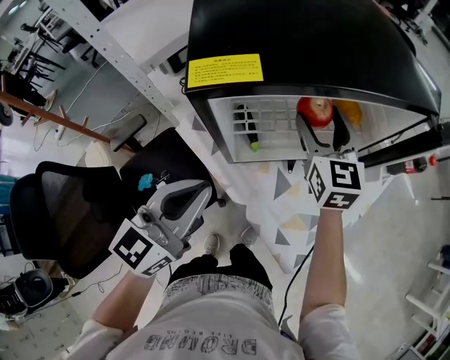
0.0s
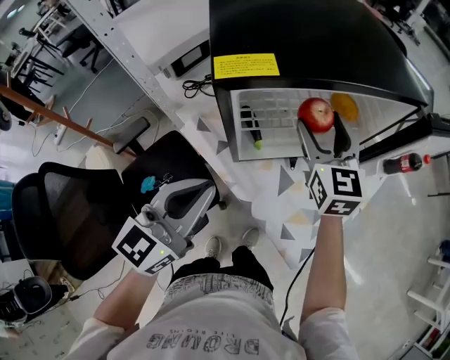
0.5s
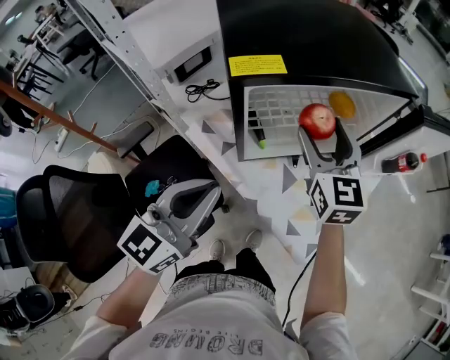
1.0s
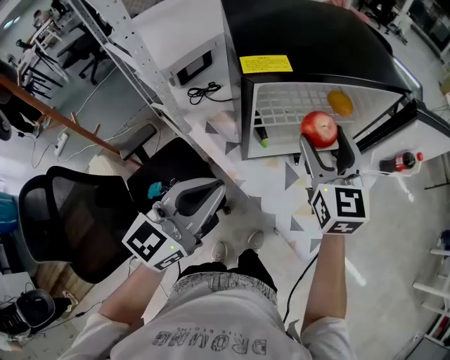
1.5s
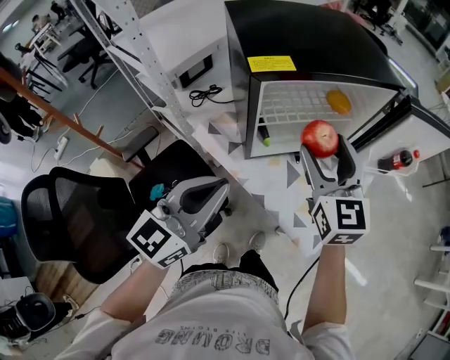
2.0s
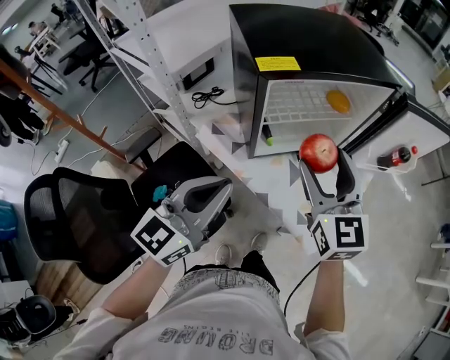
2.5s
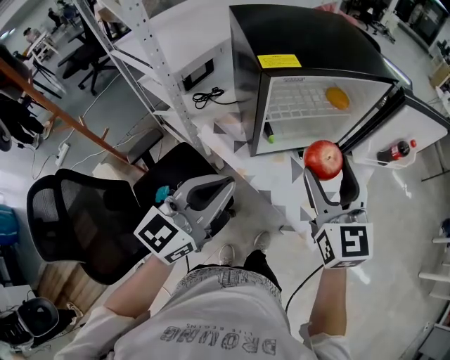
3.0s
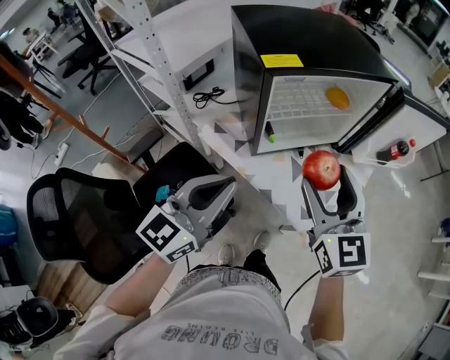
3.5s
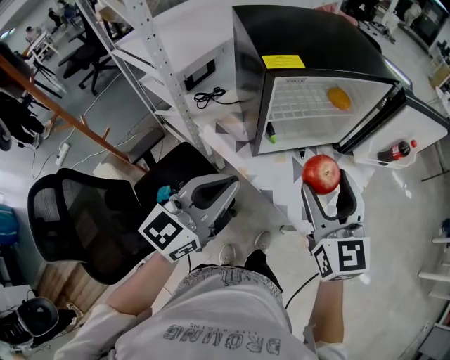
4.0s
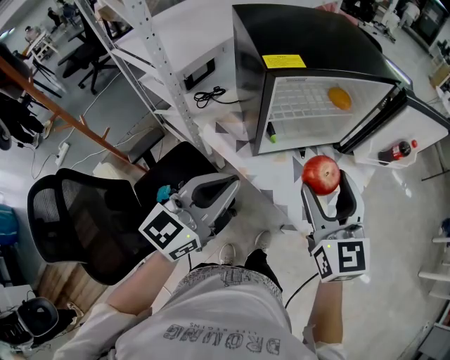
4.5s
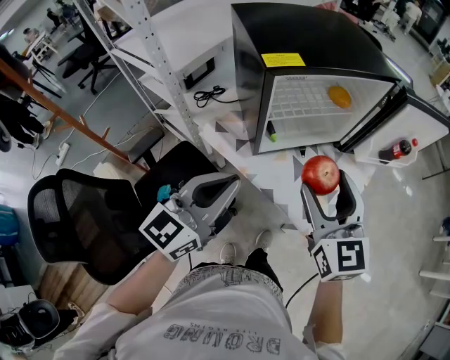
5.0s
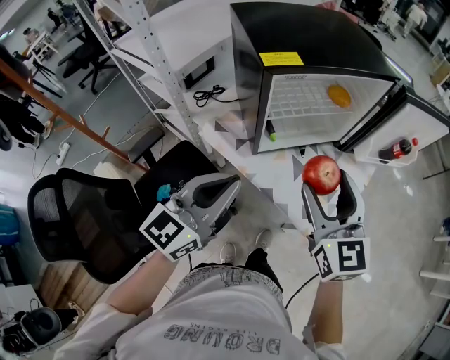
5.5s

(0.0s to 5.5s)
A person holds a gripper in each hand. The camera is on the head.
0.0s - 2.0s: The right gripper goes approximately 20 cm backward and upward; the left gripper moves backward, some 10 cm.
2.0s - 3.5s: The right gripper moves backward, approximately 10 cm.
3.5s - 5.5s: Neither gripper changes place.

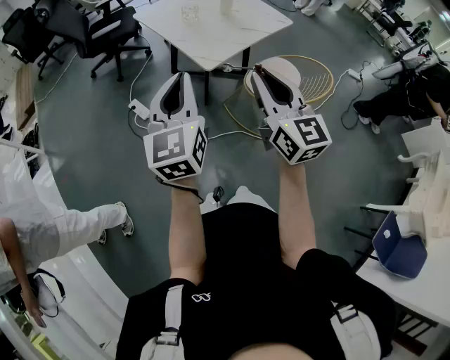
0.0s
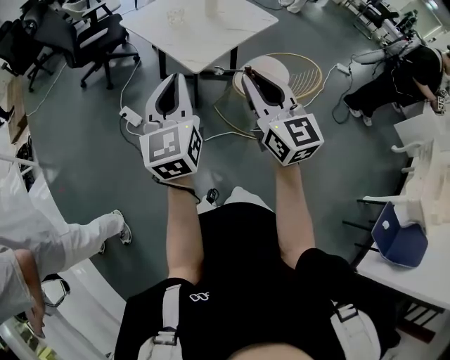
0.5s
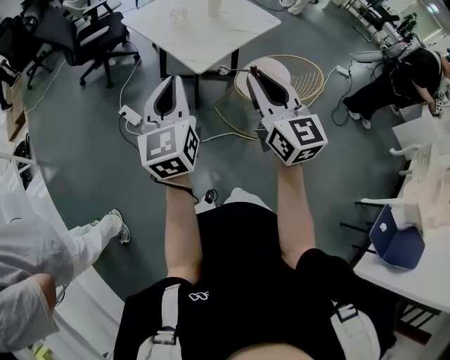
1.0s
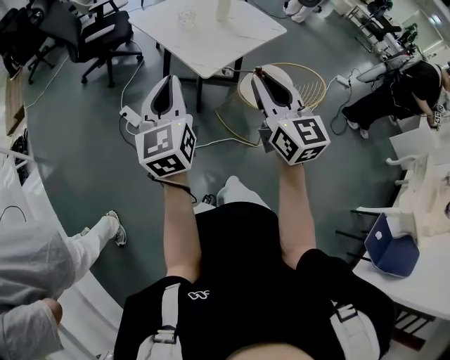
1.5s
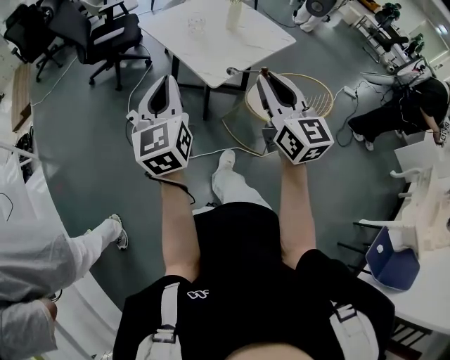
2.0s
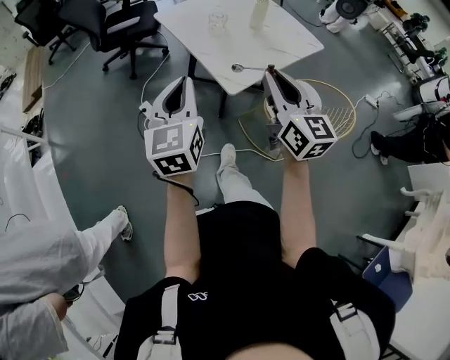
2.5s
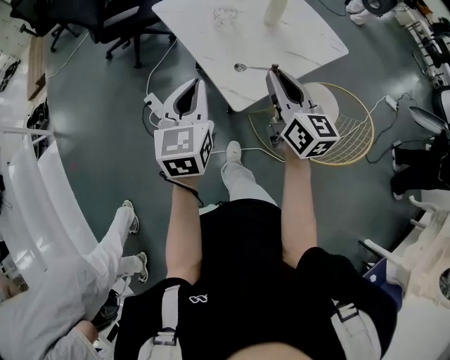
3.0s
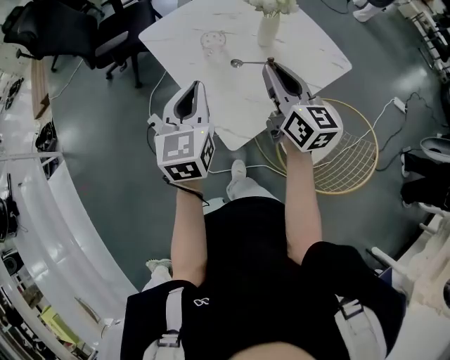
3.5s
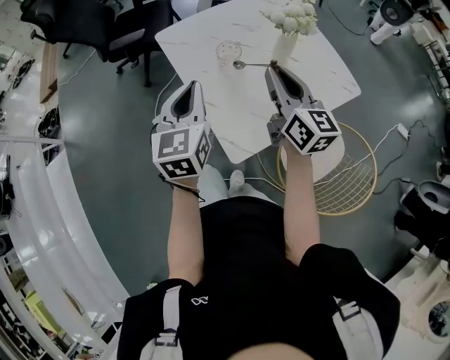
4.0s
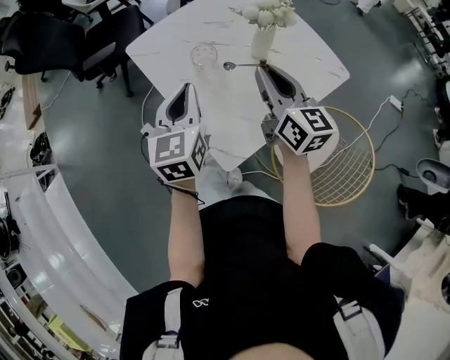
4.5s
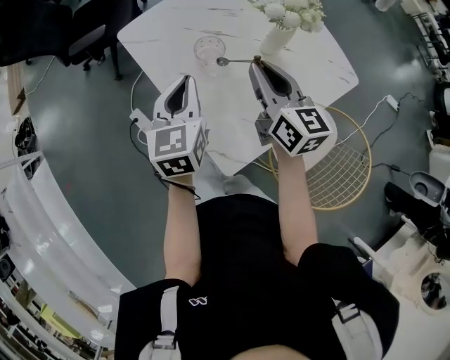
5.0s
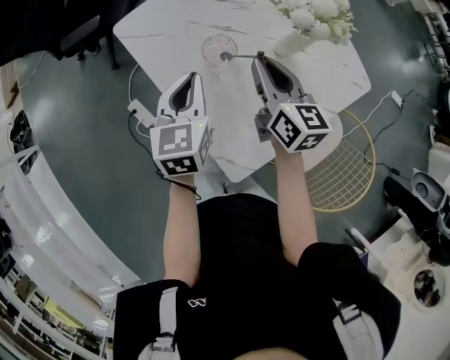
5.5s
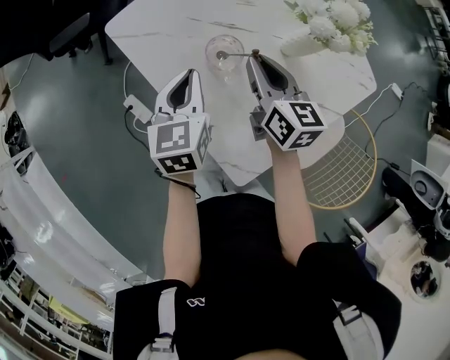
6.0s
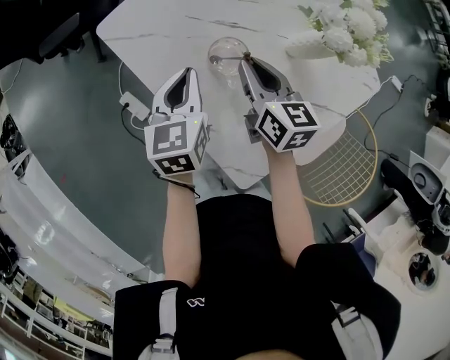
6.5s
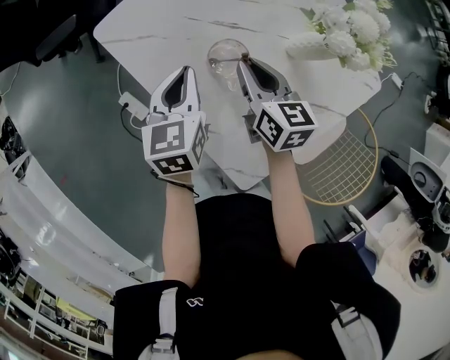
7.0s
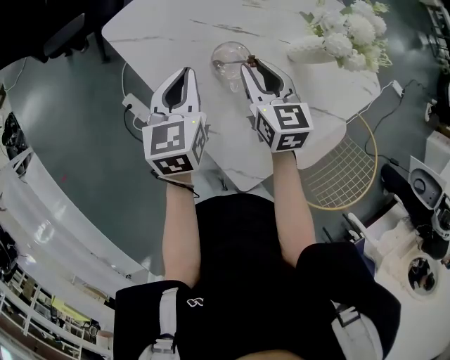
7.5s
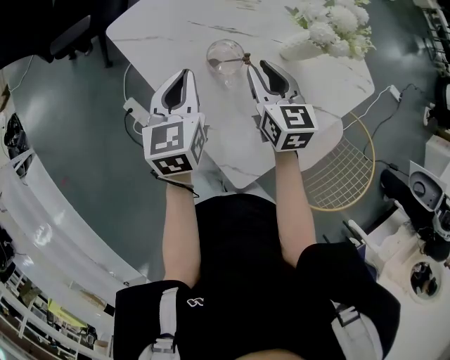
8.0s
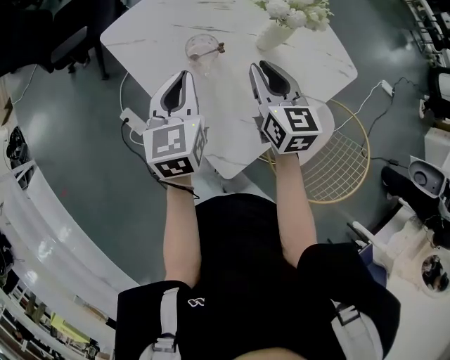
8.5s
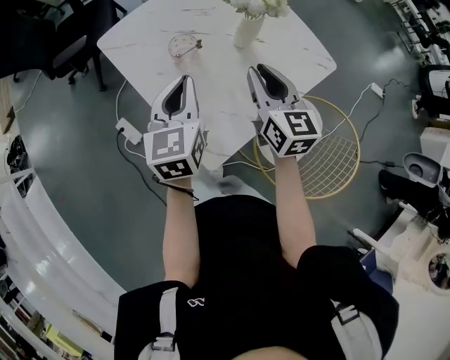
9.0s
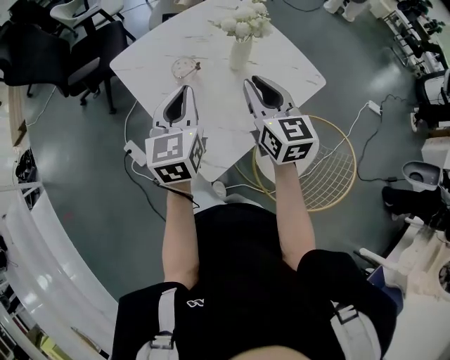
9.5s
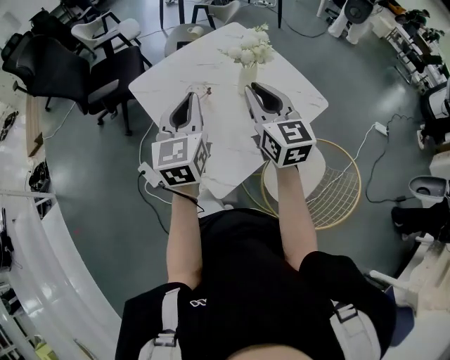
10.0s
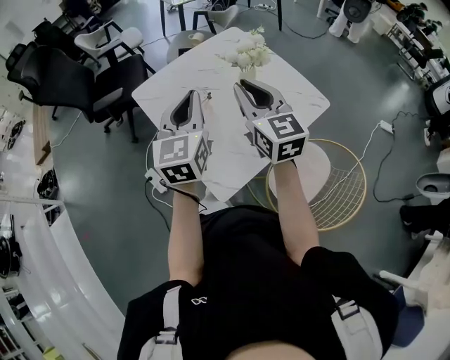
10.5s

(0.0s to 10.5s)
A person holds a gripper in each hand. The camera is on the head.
0.0s - 2.0s: The right gripper heads forward, covering roughly 5 cm. The left gripper travels forward and to the left by some 10 cm.
2.0s - 4.0s: Both grippers travel together forward, approximately 40 cm. The right gripper rotates some 20 degrees.
4.0s - 6.5s: Both grippers move downward and forward, some 25 cm. The left gripper swivels approximately 20 degrees, while the right gripper rotates roughly 30 degrees.
6.5s - 8.5s: The right gripper heads to the right, upward and backward, covering approximately 10 cm; the left gripper moves upward and backward, roughly 10 cm.
8.5s - 10.5s: The grippers both shift upward and backward by about 20 cm. The left gripper rotates approximately 20 degrees; the right gripper turns by about 20 degrees.

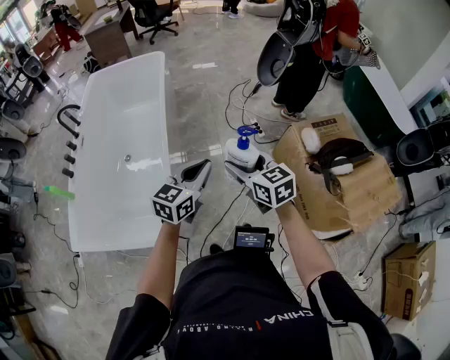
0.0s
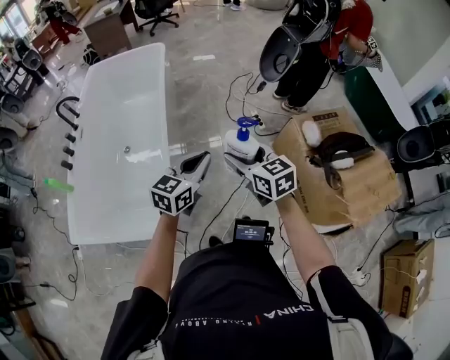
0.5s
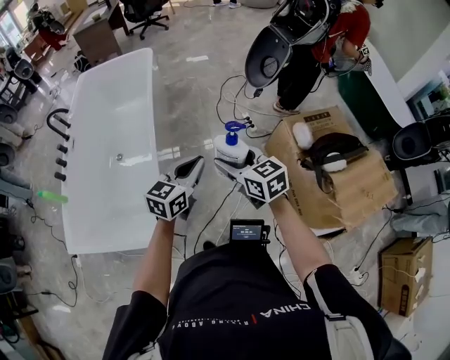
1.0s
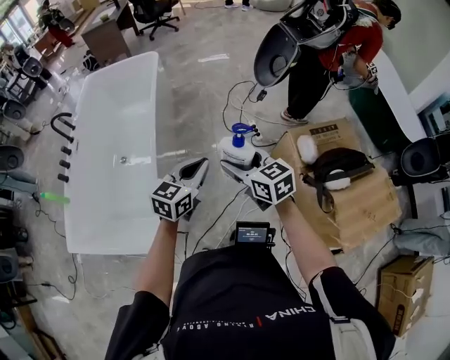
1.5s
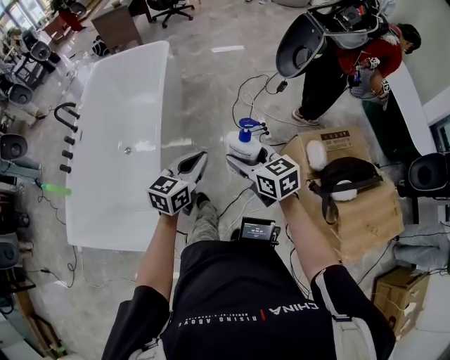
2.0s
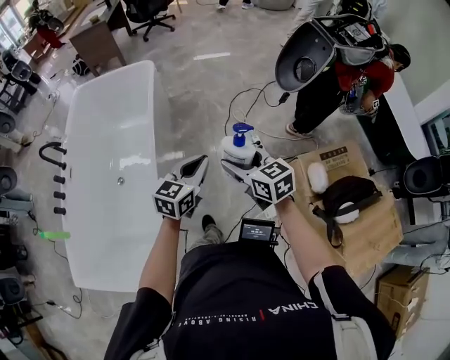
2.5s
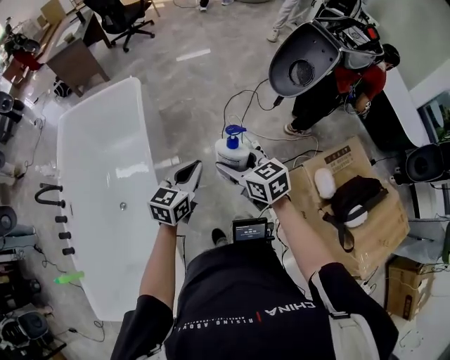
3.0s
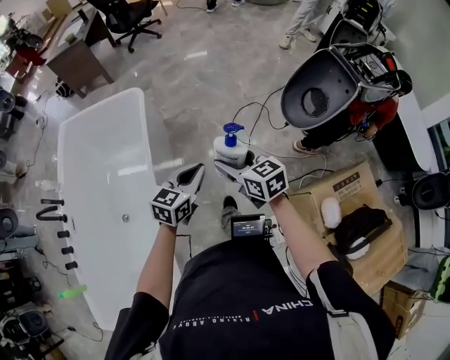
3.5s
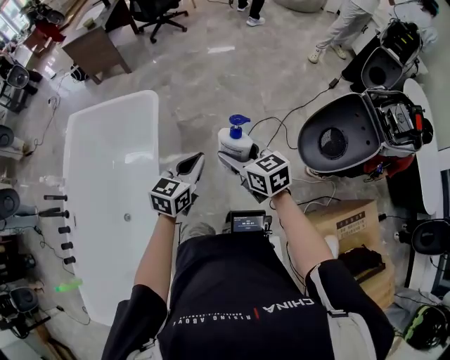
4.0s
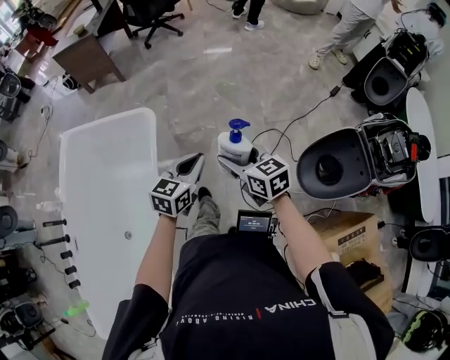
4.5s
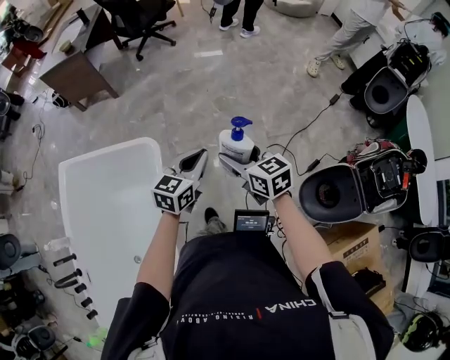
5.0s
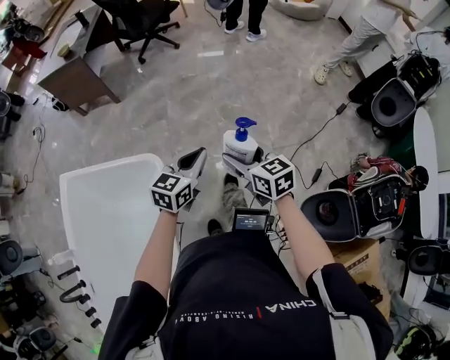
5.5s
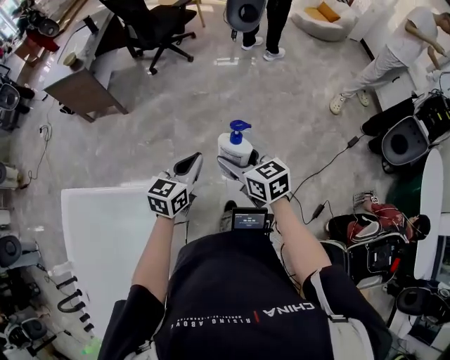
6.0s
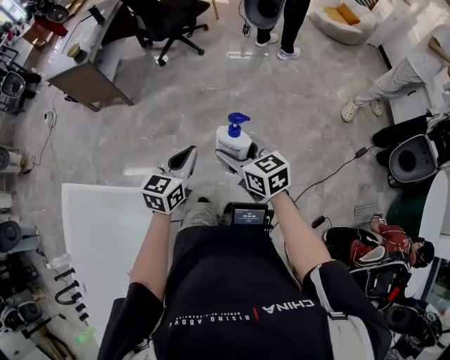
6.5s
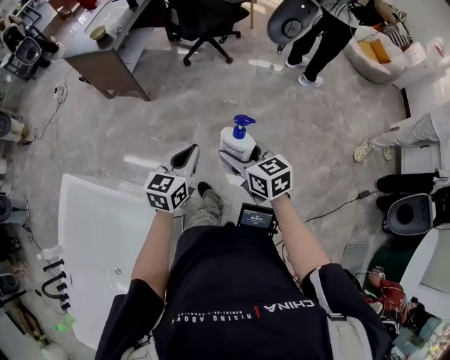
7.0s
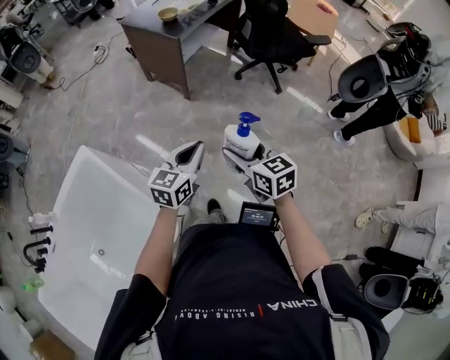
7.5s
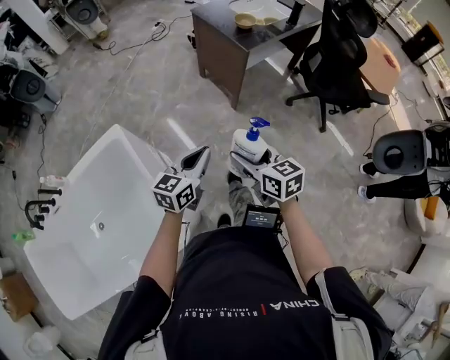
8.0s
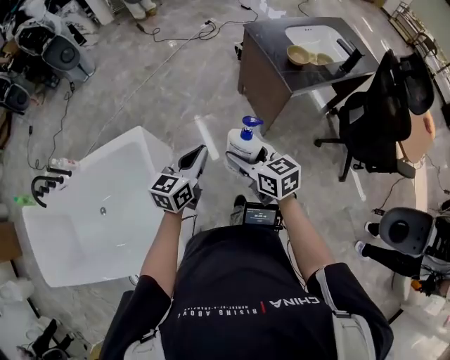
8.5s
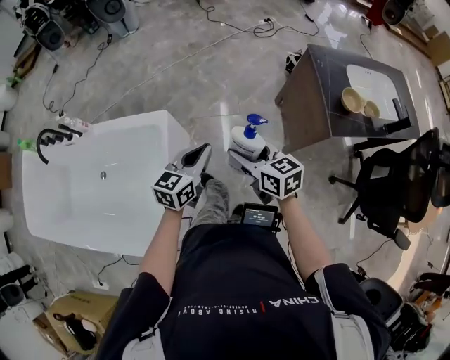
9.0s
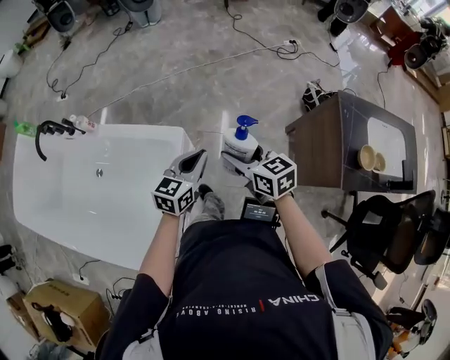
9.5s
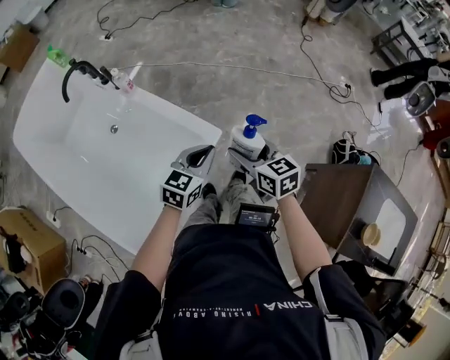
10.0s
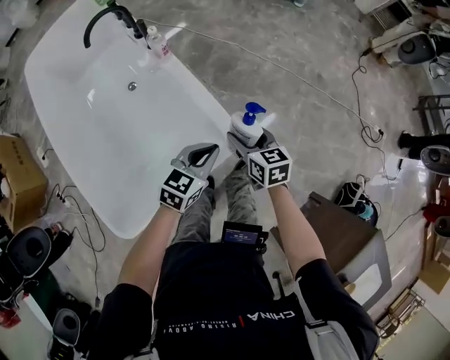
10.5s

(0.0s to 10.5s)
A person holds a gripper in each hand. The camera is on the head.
0.0s - 2.0s: Both grippers move forward and to the right, roughly 15 cm.
2.0s - 4.0s: Both grippers are carried forward, approximately 60 cm.
4.0s - 6.5s: The pair of grippers is taken forward, about 70 cm.
6.5s - 8.5s: Both grippers are carried about 70 cm. The right gripper swivels approximately 60 degrees, while the left gripper changes its angle by about 70 degrees.
8.5s - 10.5s: Both grippers are carried some 60 cm. The left gripper rotates approximately 60 degrees. The right gripper turns by some 60 degrees.
